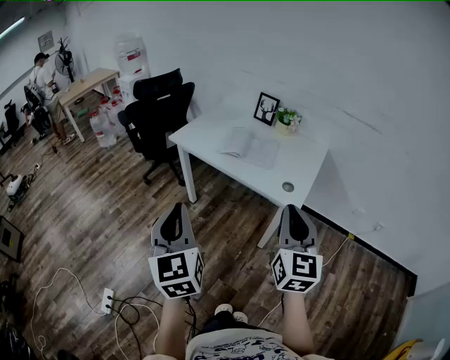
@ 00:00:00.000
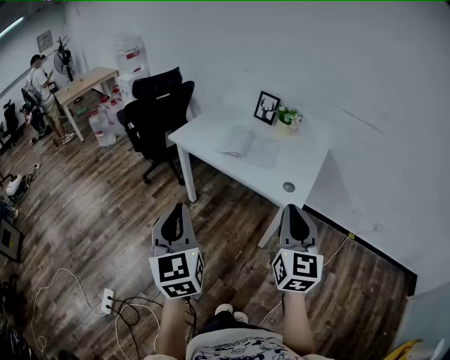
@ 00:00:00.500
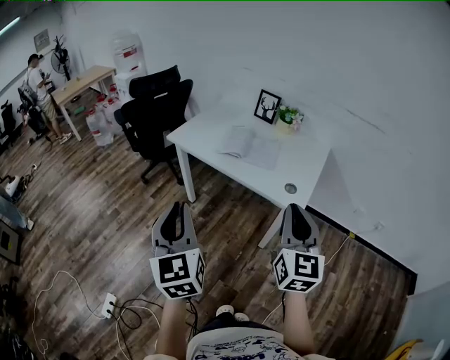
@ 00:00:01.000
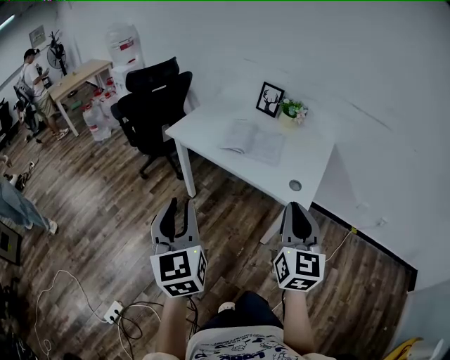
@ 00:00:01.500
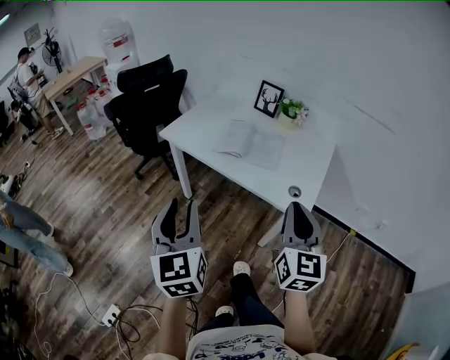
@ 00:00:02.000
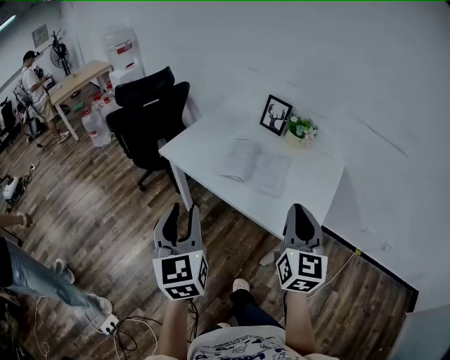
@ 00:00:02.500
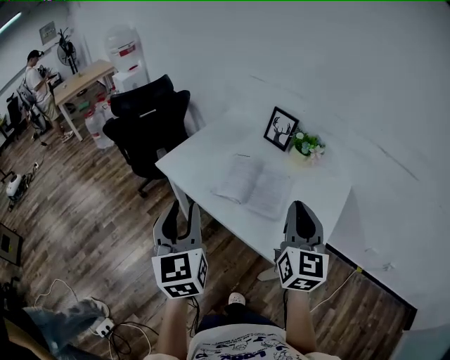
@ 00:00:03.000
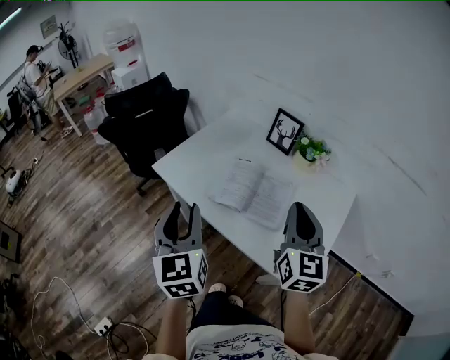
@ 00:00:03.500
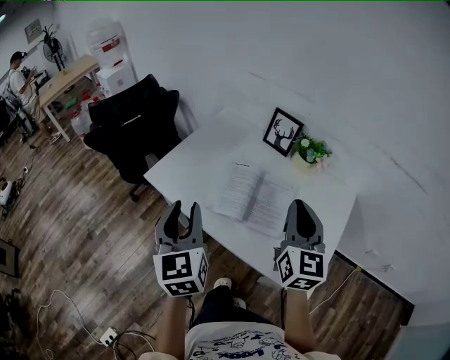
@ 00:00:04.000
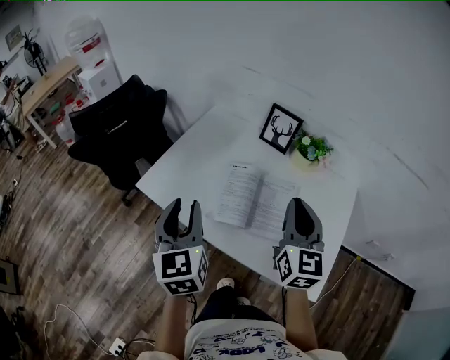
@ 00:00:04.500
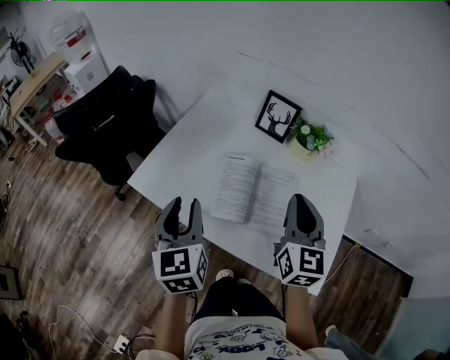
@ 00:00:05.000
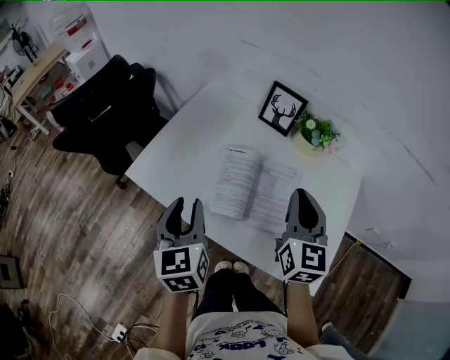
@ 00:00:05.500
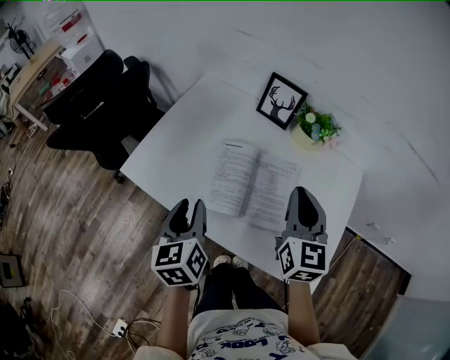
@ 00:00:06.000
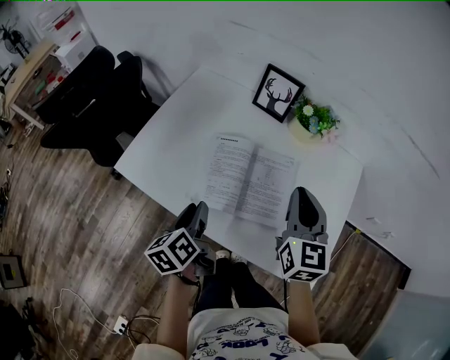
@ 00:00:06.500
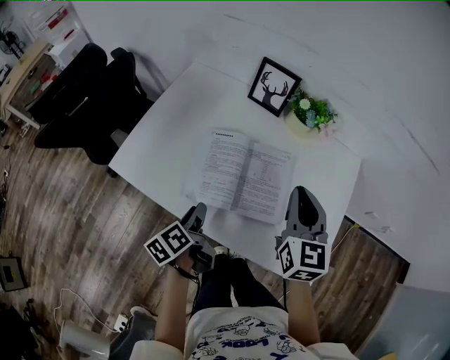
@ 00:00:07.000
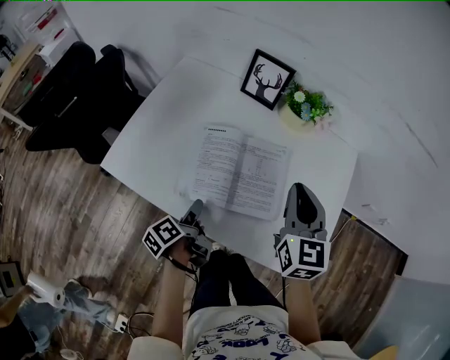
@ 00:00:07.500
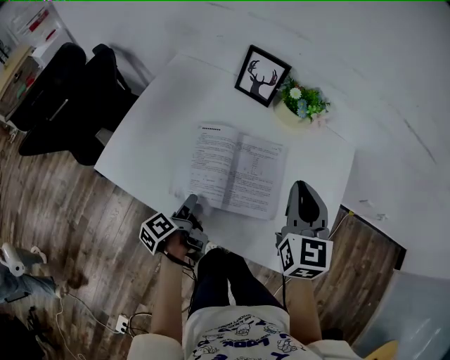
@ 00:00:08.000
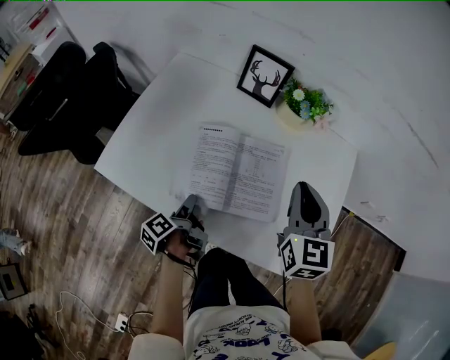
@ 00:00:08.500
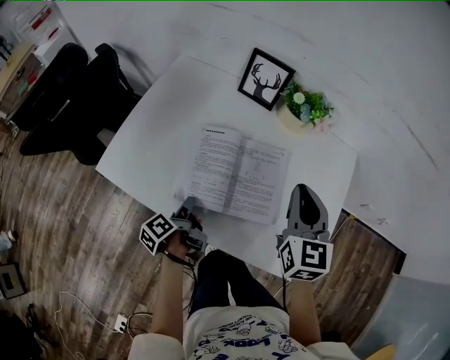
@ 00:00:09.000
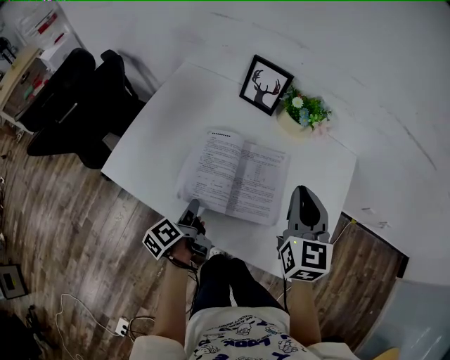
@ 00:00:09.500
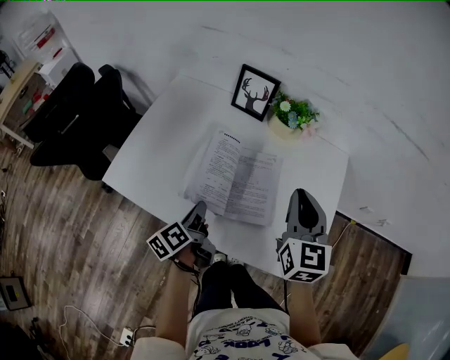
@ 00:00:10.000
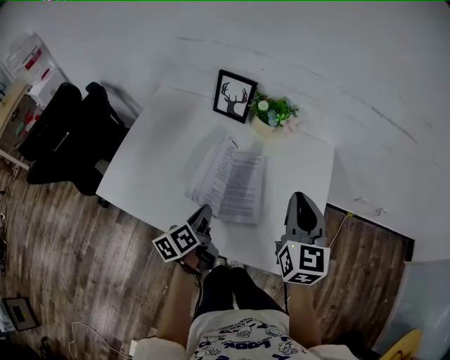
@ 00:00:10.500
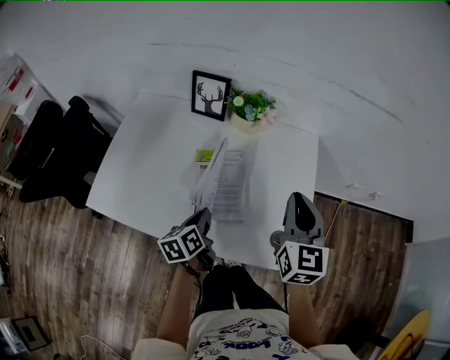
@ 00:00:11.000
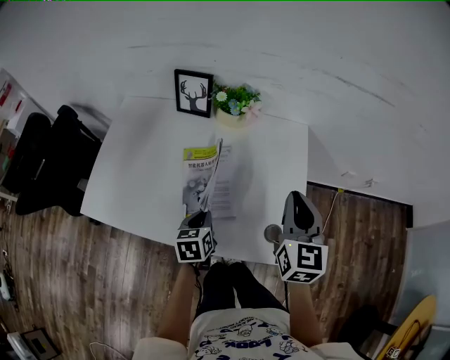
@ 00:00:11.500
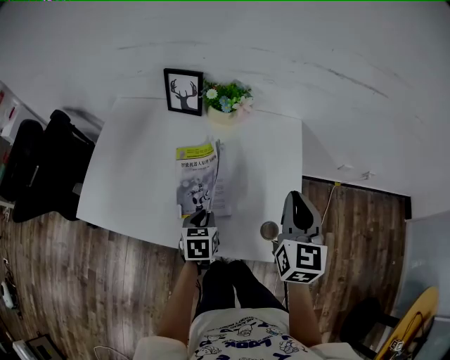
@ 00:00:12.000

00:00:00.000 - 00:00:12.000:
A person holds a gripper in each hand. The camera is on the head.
00:00:00.000 - 00:00:02.000: Both grippers travel together forward, roughly 15 cm. The left gripper opens.
00:00:02.000 - 00:00:04.000: Both grippers move forward, roughly 35 cm.
00:00:04.000 - 00:00:06.000: The left gripper goes approximately 15 cm downward and forward, and rotates roughly 20 degrees. Meanwhile the right gripper travels forward and downward by roughly 10 cm.
00:00:06.000 - 00:00:08.000: The right gripper moves about 5 cm; the left gripper is displaced downward by some 20 cm, and twists some 60 degrees counterclockwise, seen from behind.
00:00:08.000 - 00:00:10.000: The left gripper moves upward, roughly 5 cm, swivels some 20 degrees, and closes its fingers.
00:00:10.000 - 00:00:12.000: The two grippers go some 15 cm to the right. The left gripper twists approximately 60 degrees clockwise, seen from behind.

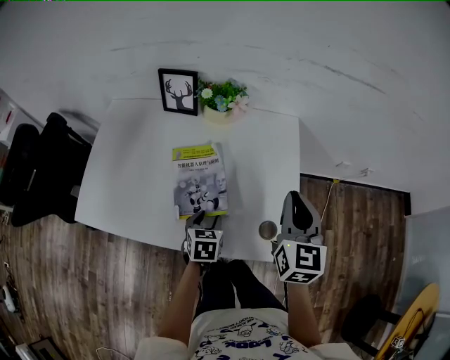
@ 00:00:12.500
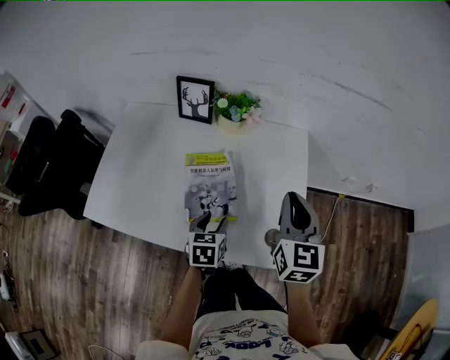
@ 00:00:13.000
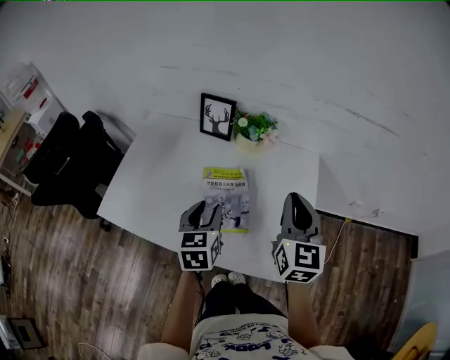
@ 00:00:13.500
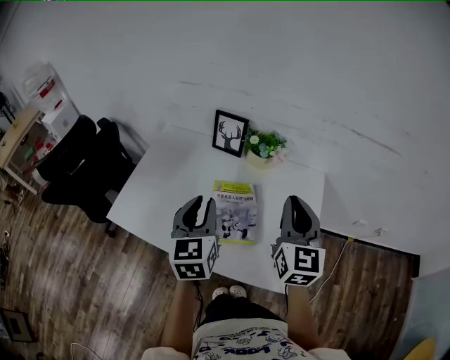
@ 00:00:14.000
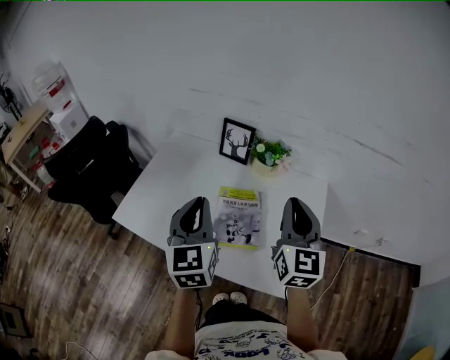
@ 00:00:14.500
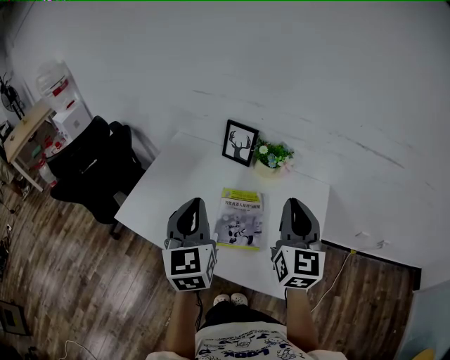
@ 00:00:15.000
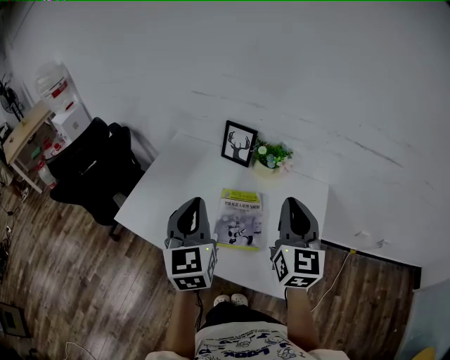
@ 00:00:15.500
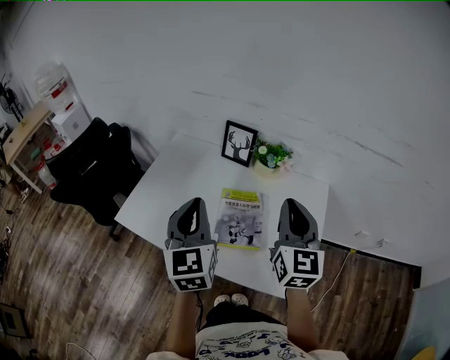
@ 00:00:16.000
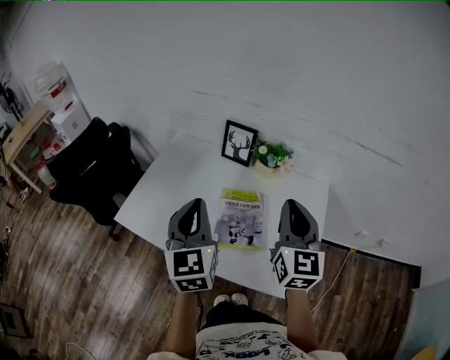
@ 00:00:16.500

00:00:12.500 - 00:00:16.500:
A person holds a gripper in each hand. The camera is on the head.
00:00:12.500 - 00:00:14.500: The left gripper shifts roughly 35 cm upward, tilts its fingers roughly 40 degrees upward, and closes, while the right gripper is displaced upward and to the left by roughly 15 cm, and swivels approximately 20 degrees.
00:00:14.500 - 00:00:16.500: The grippers make only small movements.

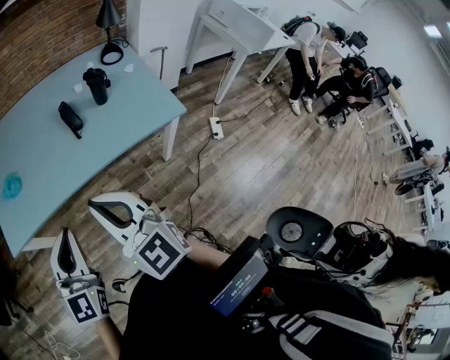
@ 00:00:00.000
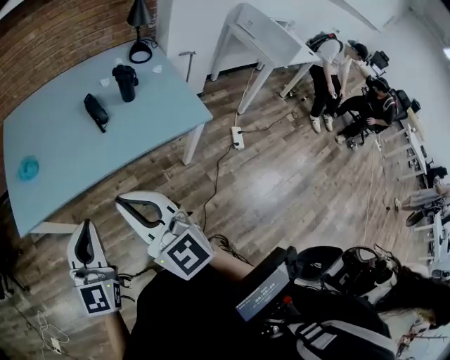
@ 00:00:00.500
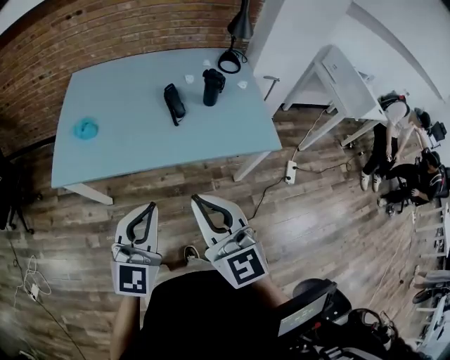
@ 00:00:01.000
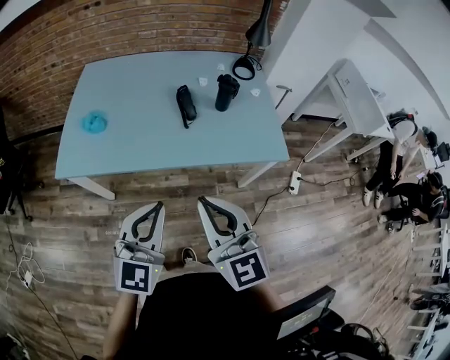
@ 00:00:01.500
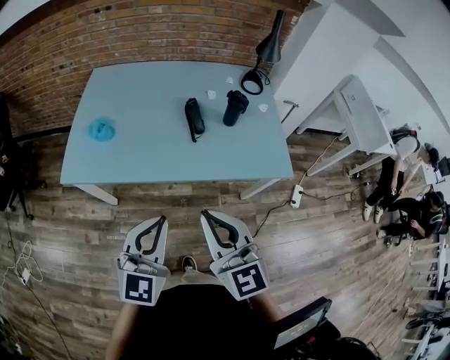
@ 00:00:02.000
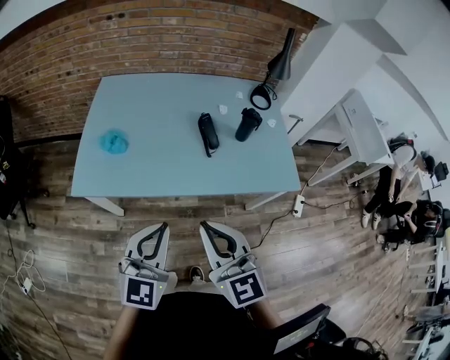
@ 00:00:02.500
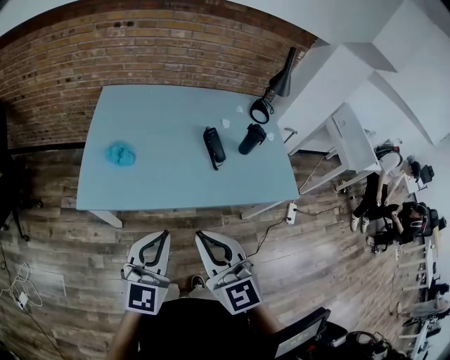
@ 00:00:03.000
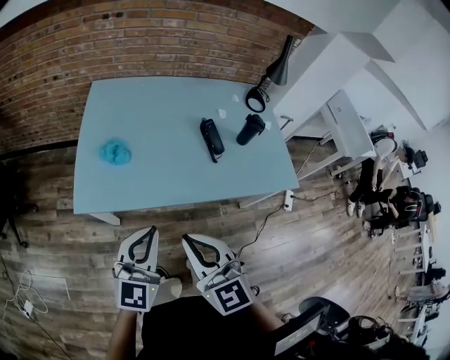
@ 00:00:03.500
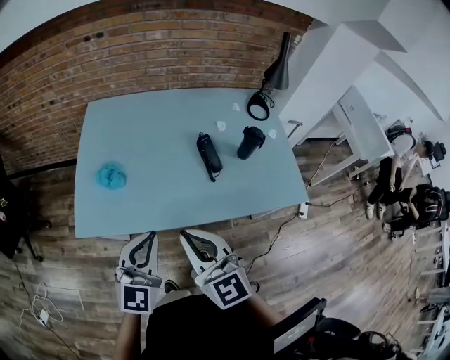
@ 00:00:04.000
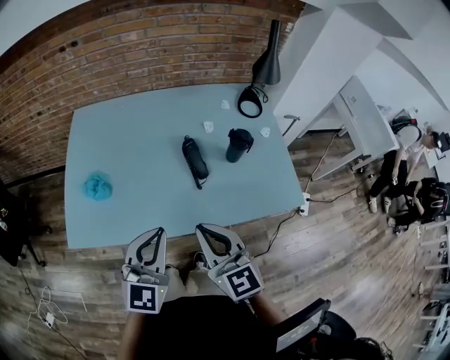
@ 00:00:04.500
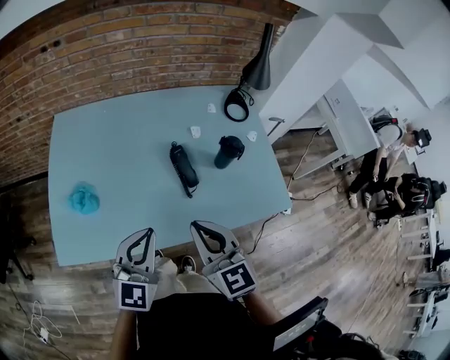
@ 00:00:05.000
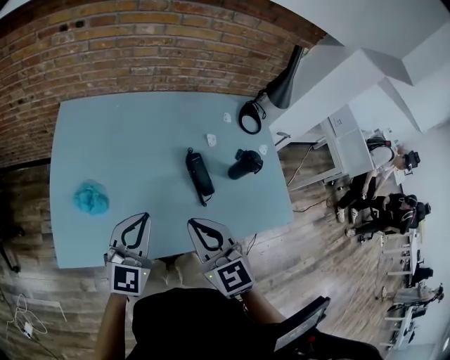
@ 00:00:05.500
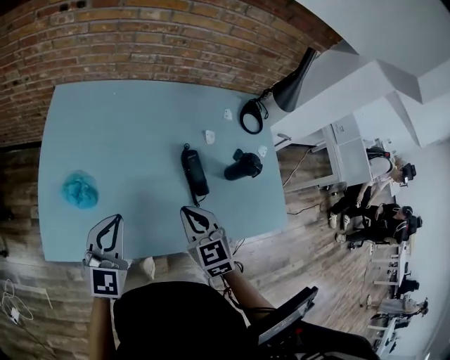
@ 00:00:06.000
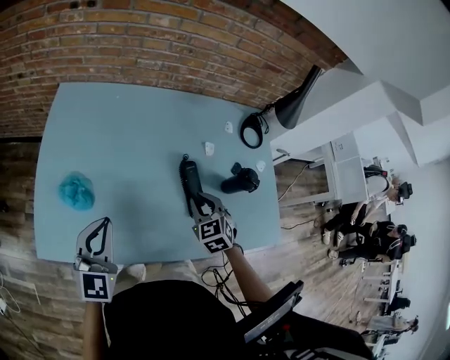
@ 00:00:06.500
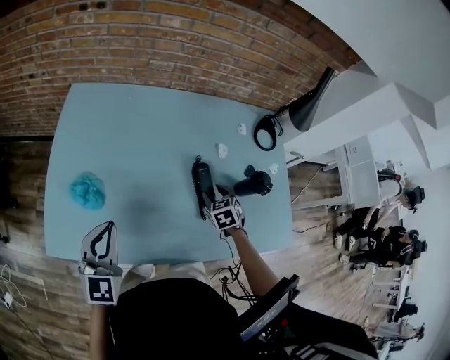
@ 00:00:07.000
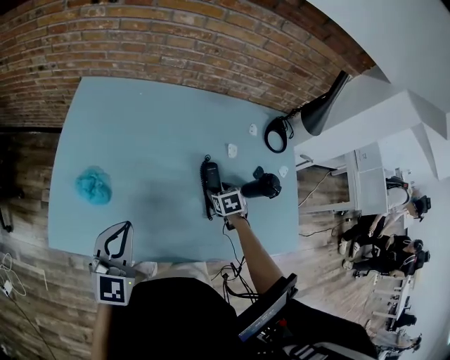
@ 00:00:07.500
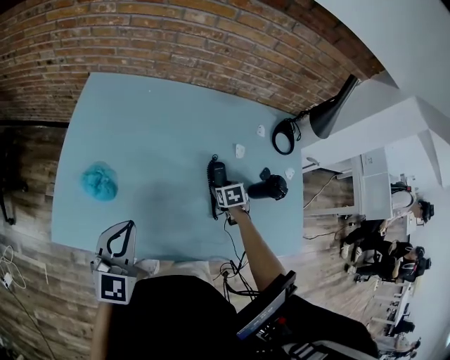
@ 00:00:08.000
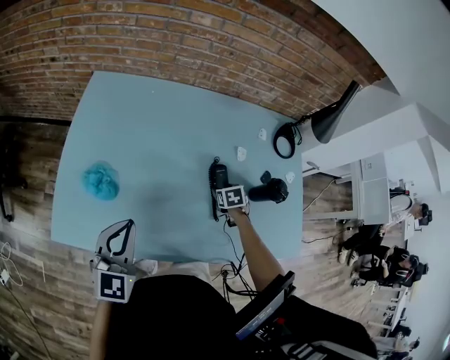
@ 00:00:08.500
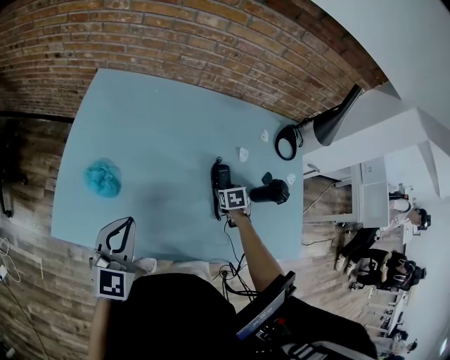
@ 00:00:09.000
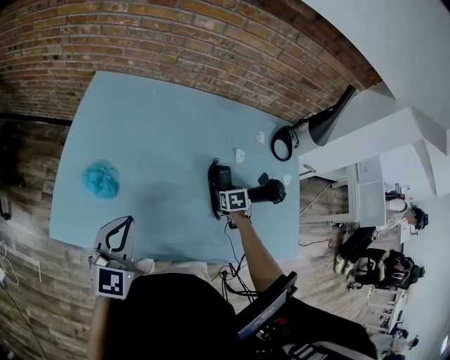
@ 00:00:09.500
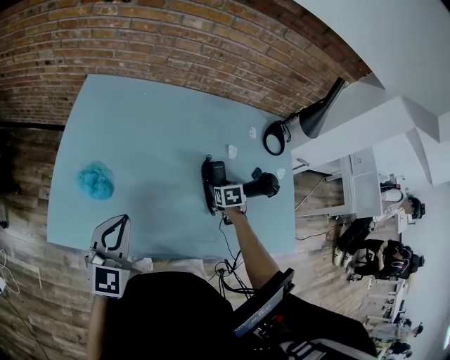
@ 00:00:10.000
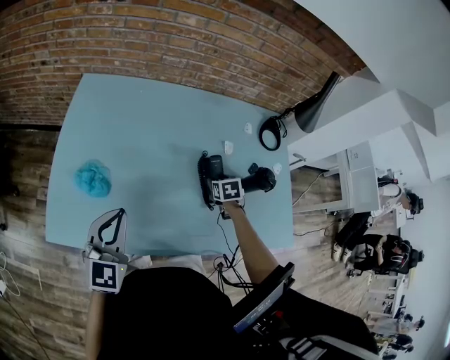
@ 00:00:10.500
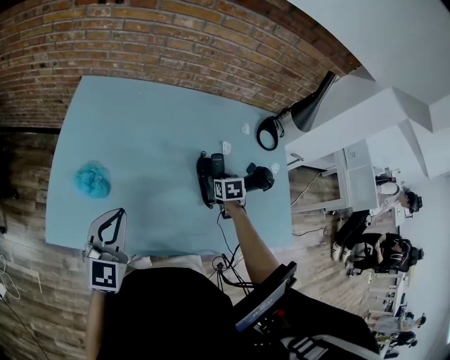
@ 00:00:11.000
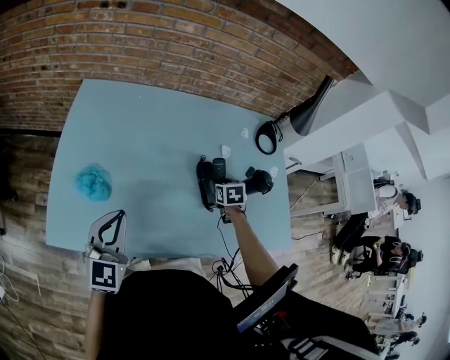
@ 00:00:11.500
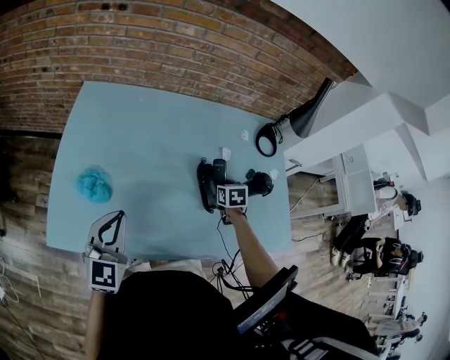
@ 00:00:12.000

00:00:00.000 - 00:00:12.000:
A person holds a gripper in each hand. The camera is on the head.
00:00:00.000 - 00:00:02.000: The right gripper ends up about 5 cm from where it was.
00:00:02.000 - 00:00:04.000: The left gripper is displaced forward and to the left by about 20 cm; the right gripper travels to the left and forward by some 20 cm.
00:00:04.000 - 00:00:06.000: The right gripper travels forward and downward by roughly 30 cm, and turns by about 30 degrees; the left gripper moves forward, roughly 20 cm.
00:00:06.000 - 00:00:08.000: The right gripper is displaced downward, forward and to the right by roughly 30 cm, points its fingers some 30 degrees further downward, and opens.
00:00:08.000 - 00:00:10.000: The grippers stay close to where they were, moving slightly.
00:00:10.000 - 00:00:12.000: The grippers move only a little.
